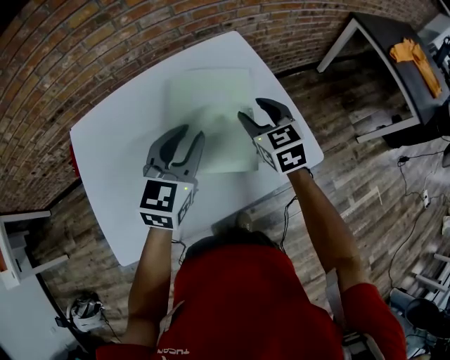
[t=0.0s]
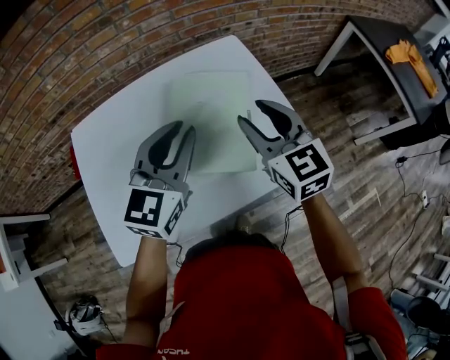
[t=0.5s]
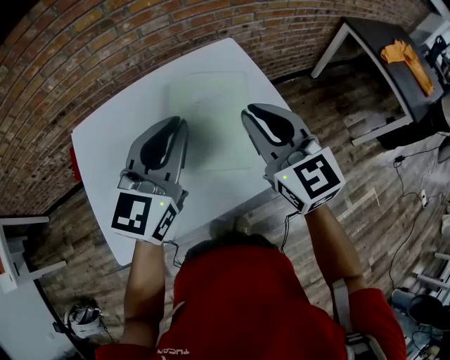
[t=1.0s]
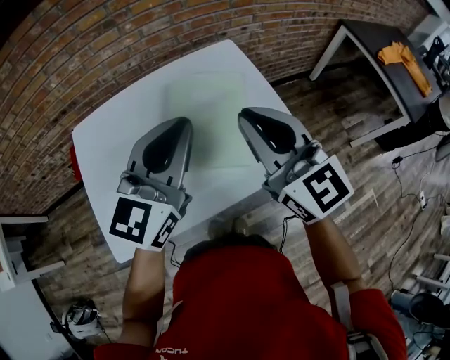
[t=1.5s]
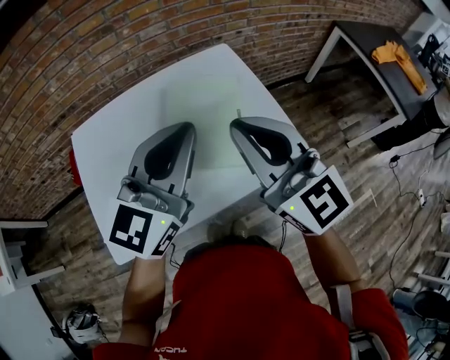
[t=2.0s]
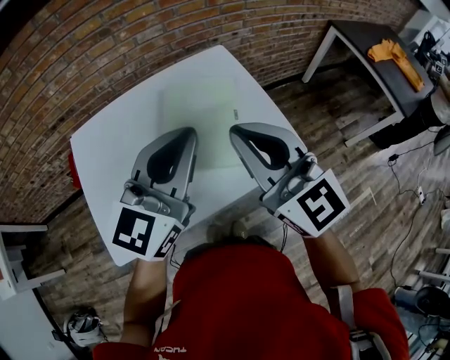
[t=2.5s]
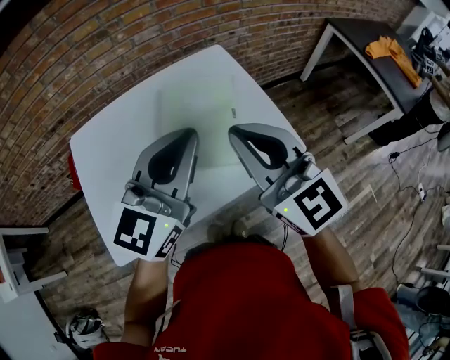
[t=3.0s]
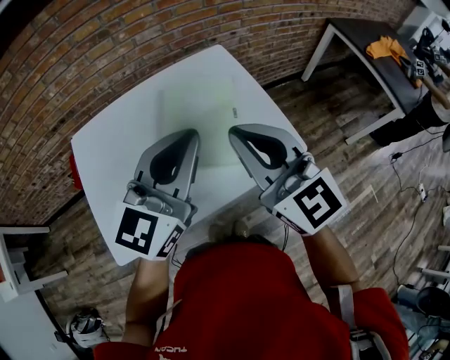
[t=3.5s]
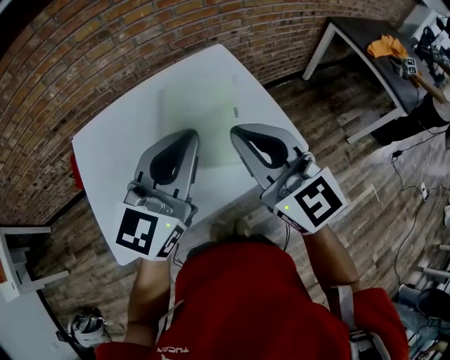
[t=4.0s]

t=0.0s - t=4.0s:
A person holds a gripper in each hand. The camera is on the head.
t=0.0s - t=2.0s: The left gripper moves upward and backward, approximately 15 cm, rotates about 20 degrees, and closes up, while the right gripper moves upward and backward, some 25 cm, tilts its fingers some 30 degrees upward, and closes its fingers.
t=2.0s - t=4.0s: The grippers stay close to where they were, moving slightly.

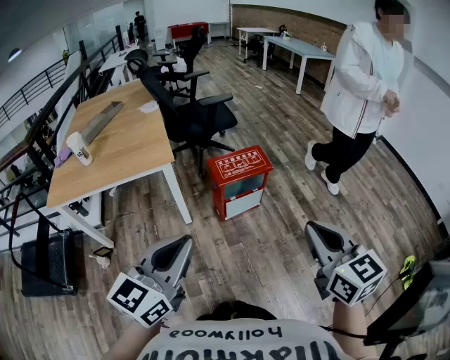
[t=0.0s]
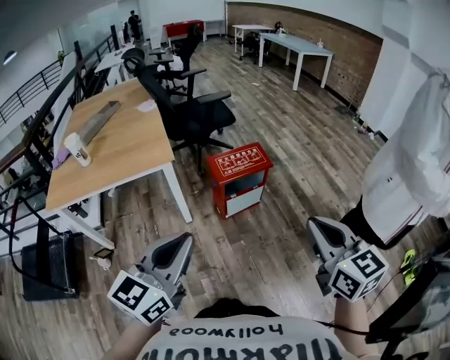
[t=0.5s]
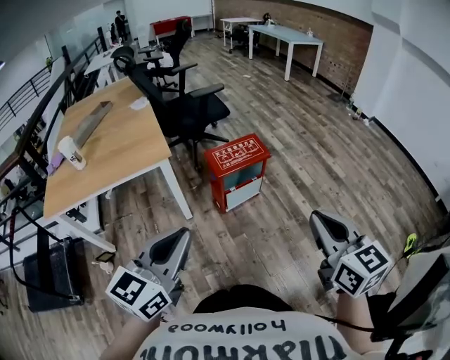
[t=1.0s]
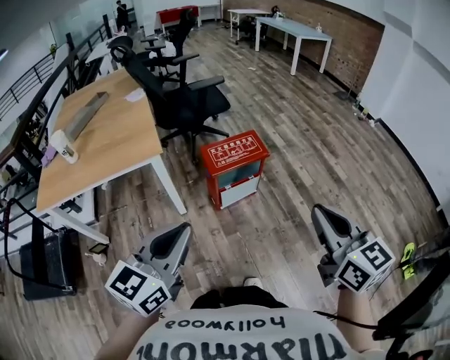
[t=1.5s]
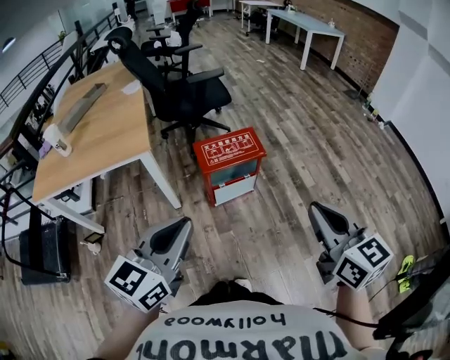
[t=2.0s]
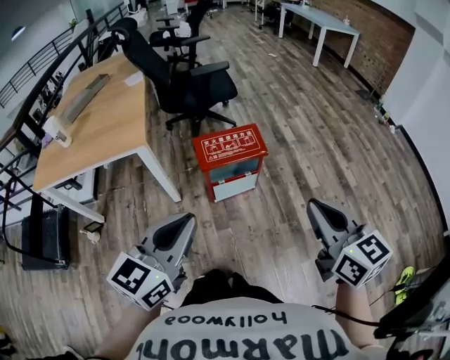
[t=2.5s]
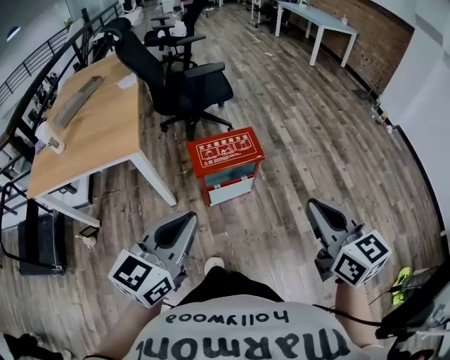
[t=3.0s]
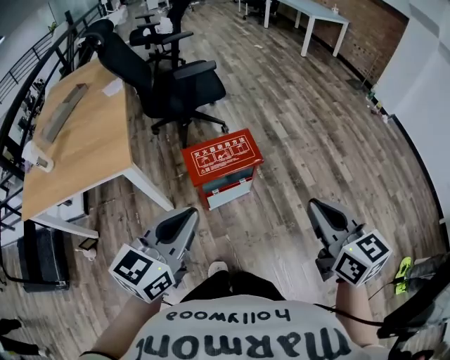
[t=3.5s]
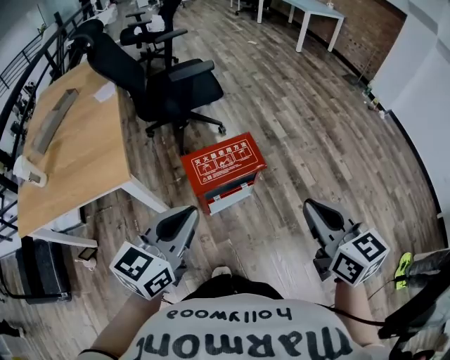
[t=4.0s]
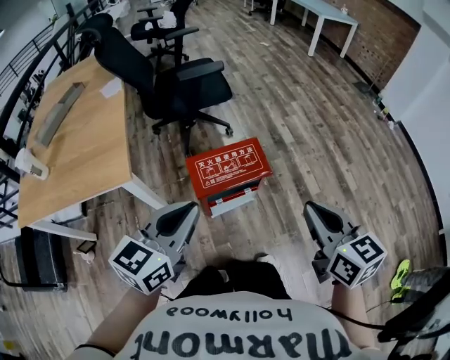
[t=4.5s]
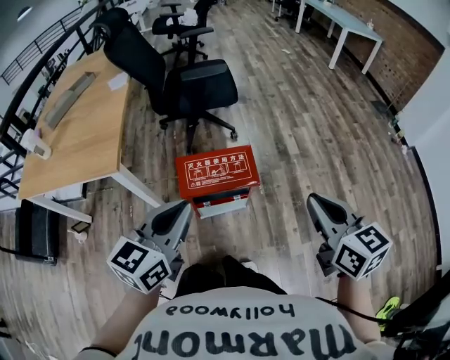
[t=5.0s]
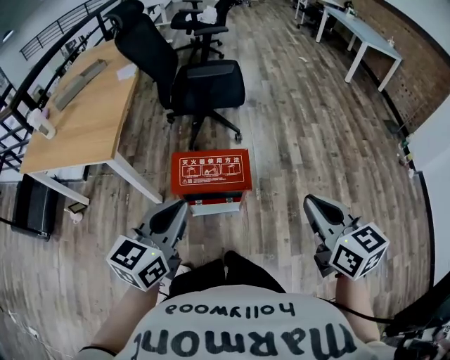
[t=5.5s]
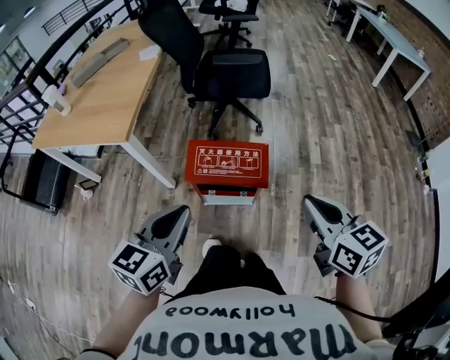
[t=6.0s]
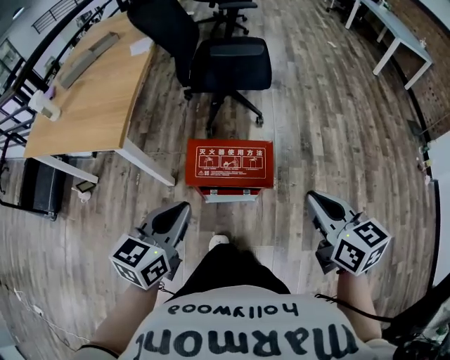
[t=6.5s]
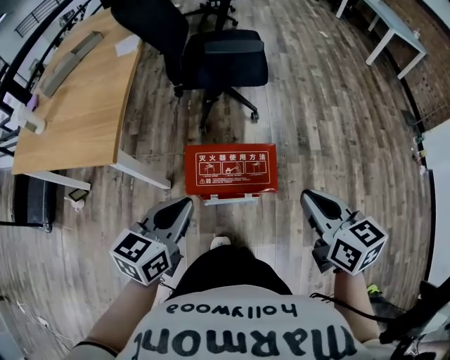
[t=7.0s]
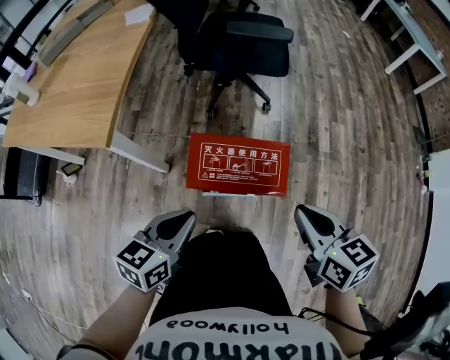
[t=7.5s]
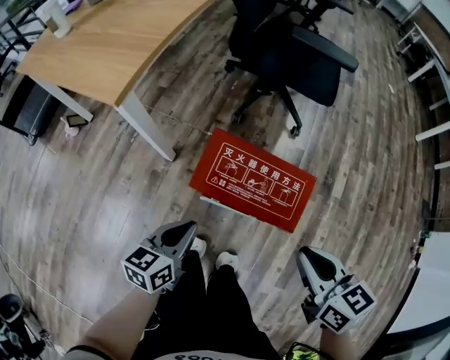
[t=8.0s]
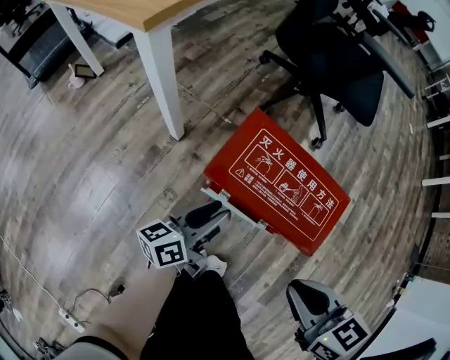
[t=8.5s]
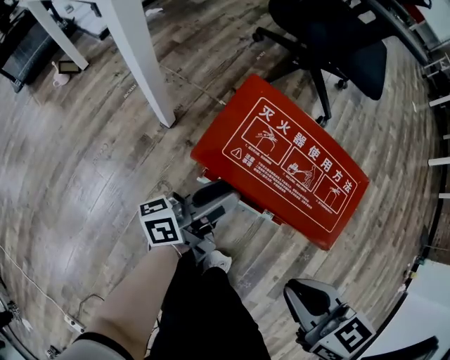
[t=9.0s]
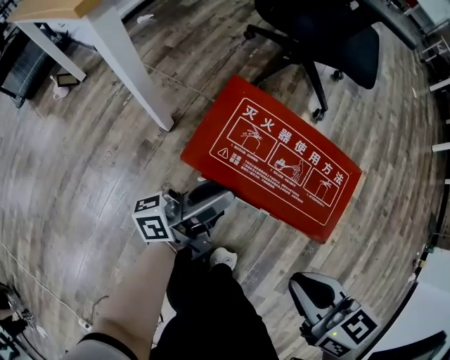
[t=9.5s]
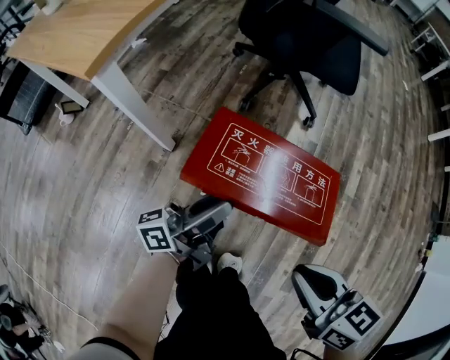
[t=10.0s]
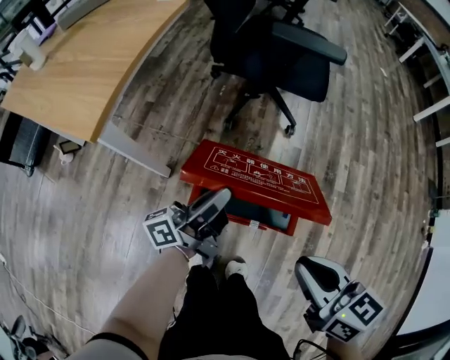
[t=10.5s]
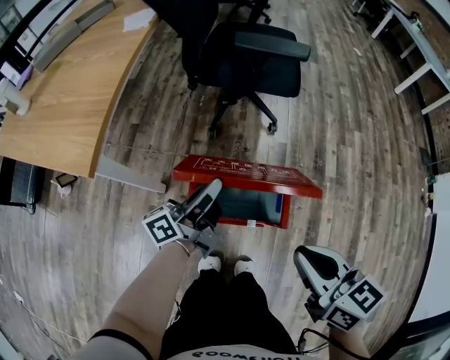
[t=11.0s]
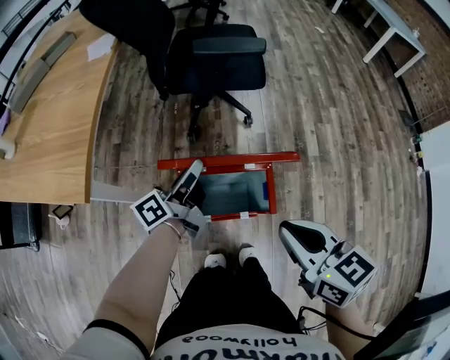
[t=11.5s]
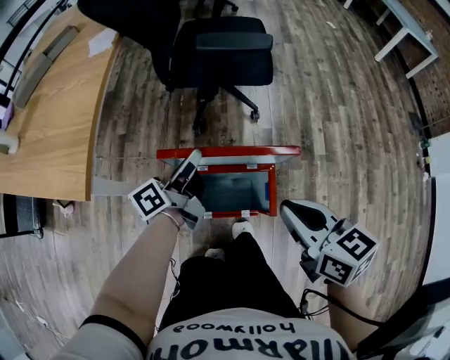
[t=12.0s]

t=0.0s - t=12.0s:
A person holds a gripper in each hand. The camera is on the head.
t=0.0s - t=2.0s: Both grippers move forward and to the right, roughly 15 cm.
t=2.0s - t=4.0s: The two grippers go approximately 20 cm forward.
t=4.0s - t=6.0s: The right gripper ends up about 20 cm from where it was, and changes its angle by some 30 degrees; the left gripper moves approximately 15 cm, and changes its angle by some 30 degrees.
t=6.0s - t=8.0s: The left gripper is displaced downward by some 30 cm, and rotates some 20 degrees. Meanwhile the right gripper is displaced downward, forward and to the left by some 25 cm, and turns by some 20 degrees.
t=8.0s - t=10.0s: The left gripper goes approximately 10 cm to the right and forward, goes downward and returns, roughly 15 cm each way, tilts its fingers approximately 50 degrees upward, and opens up, while the right gripper shifts about 10 cm downward.
t=10.0s - t=12.0s: The left gripper is displaced forward and upward by some 25 cm, and closes up. Meanwhile the right gripper heads upward and forward, covering about 20 cm, and changes its angle by roughly 20 degrees.

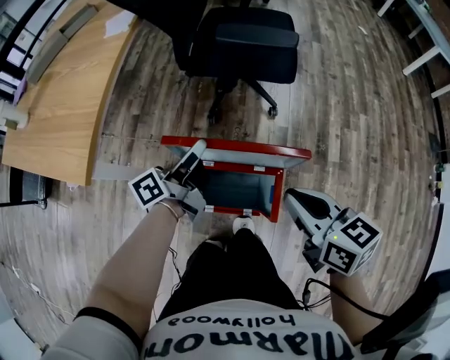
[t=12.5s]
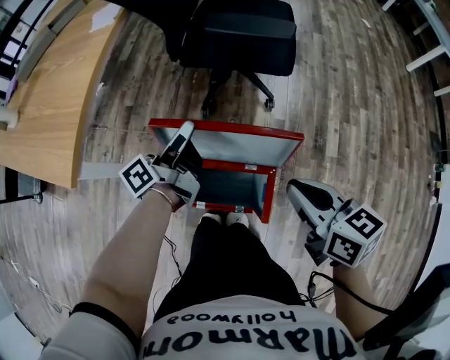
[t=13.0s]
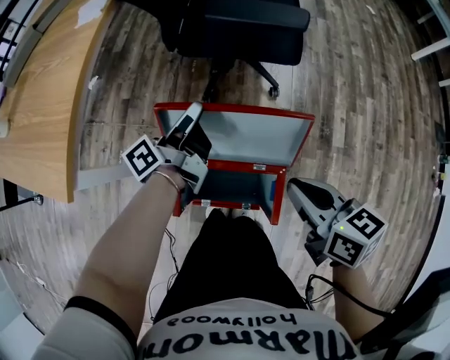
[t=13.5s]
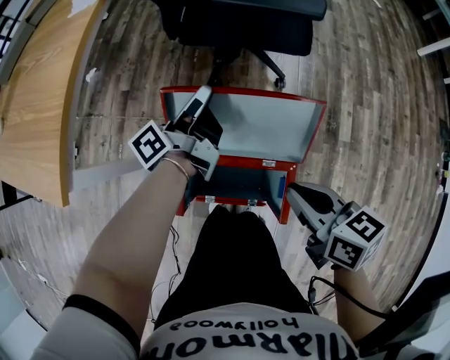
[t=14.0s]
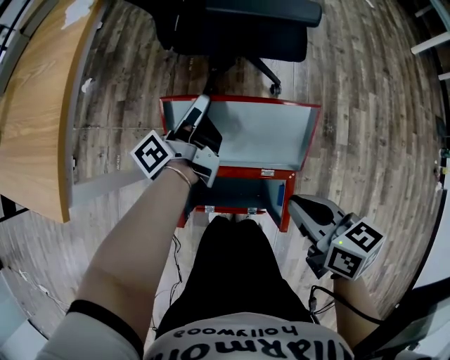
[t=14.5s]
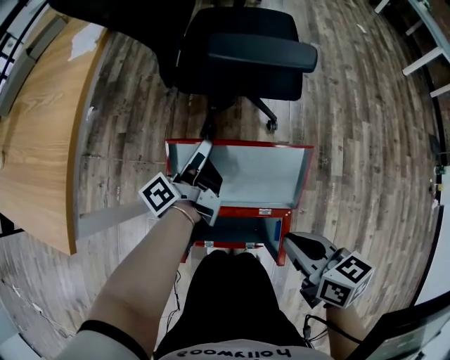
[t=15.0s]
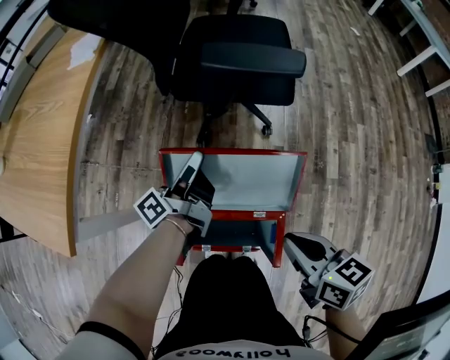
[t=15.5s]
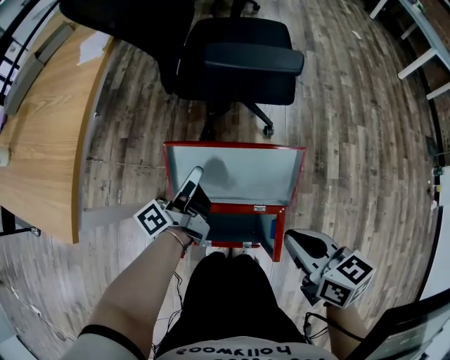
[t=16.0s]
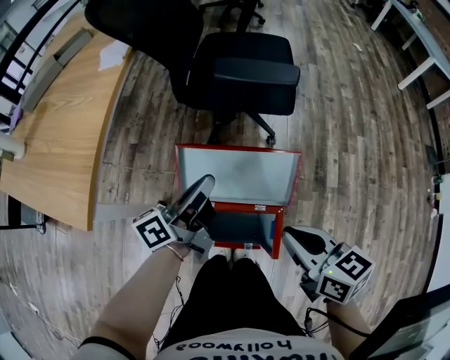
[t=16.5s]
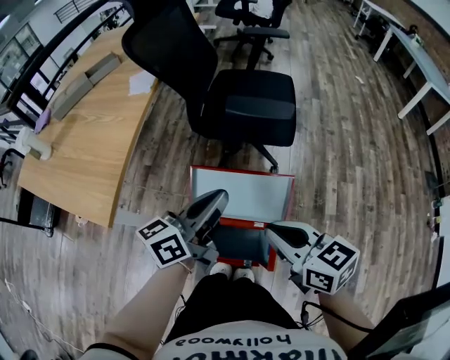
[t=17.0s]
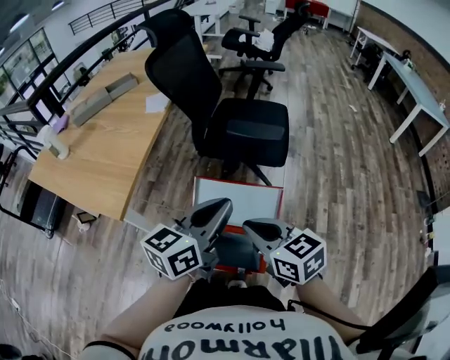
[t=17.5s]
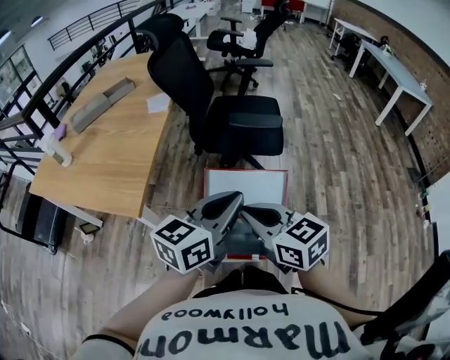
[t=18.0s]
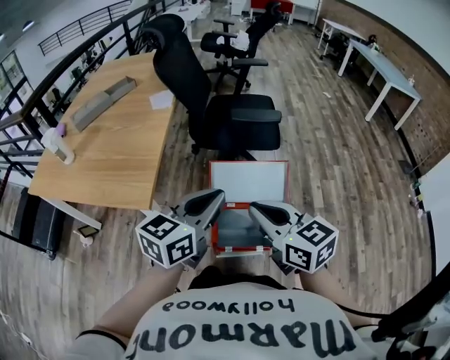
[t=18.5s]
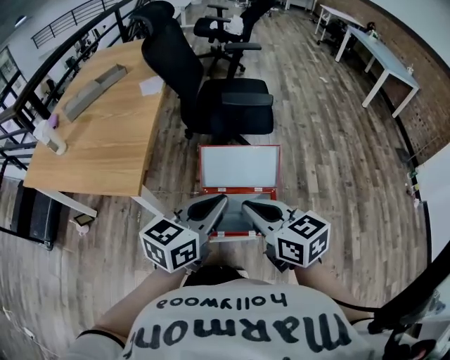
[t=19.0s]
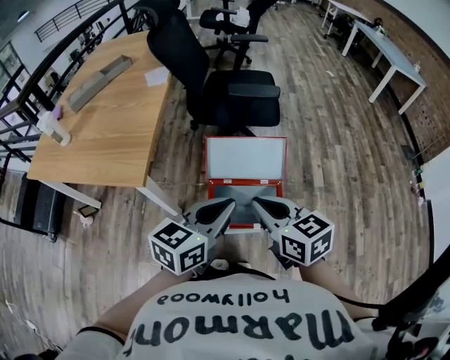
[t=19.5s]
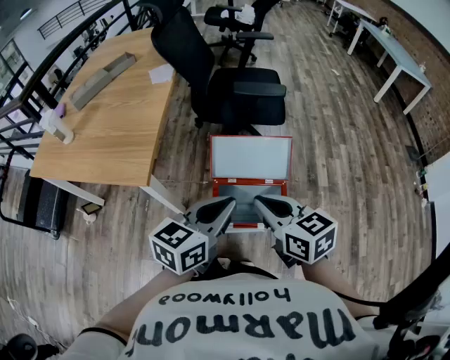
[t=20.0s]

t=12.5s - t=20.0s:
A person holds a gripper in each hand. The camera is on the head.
t=12.5s - t=14.5s: The right gripper travels downward by some 10 cm. The left gripper travels forward and downward by about 15 cm.
t=14.5s - t=16.5s: The right gripper travels upward by about 10 cm; the left gripper is displaced upward and backward by approximately 15 cm, and swivels approximately 30 degrees.
t=16.5s - t=18.0s: The right gripper travels upward and to the left by some 20 cm, and turns by roughly 20 degrees. The left gripper moves upward and backward, some 25 cm, and rotates around the line of its fingers by approximately 40 degrees, clockwise from behind.
t=18.0s - t=20.0s: The left gripper heads backward and downward, covering some 10 cm. The right gripper goes about 5 cm backward.

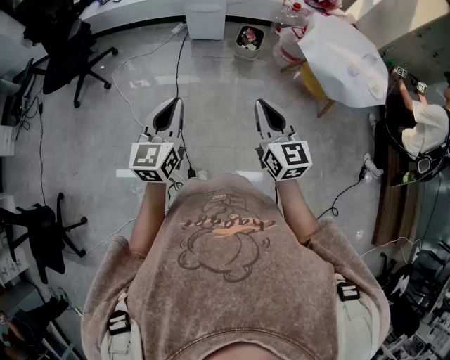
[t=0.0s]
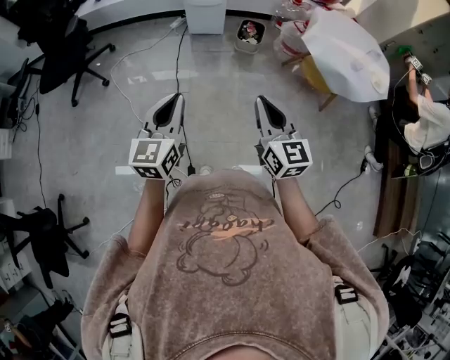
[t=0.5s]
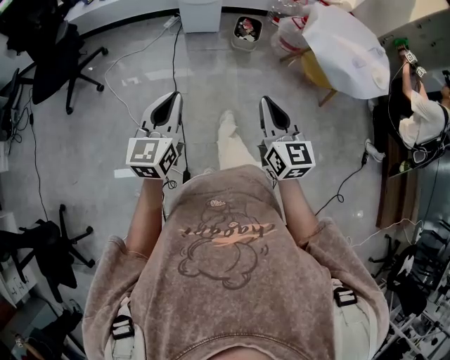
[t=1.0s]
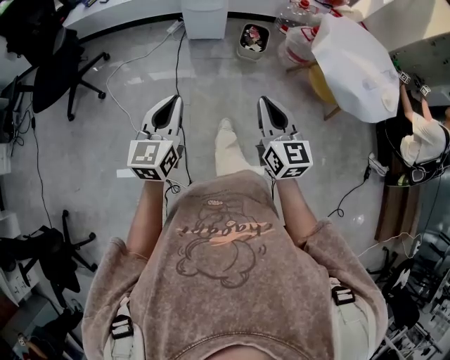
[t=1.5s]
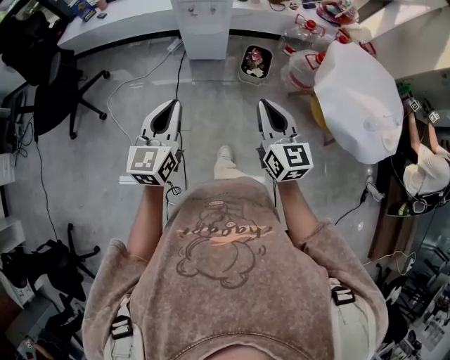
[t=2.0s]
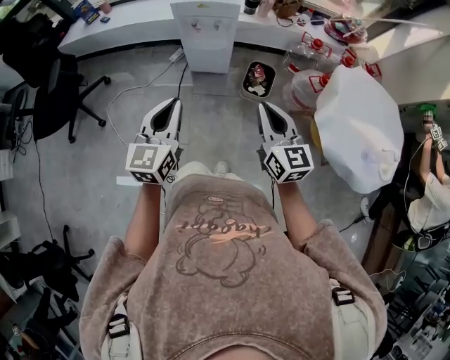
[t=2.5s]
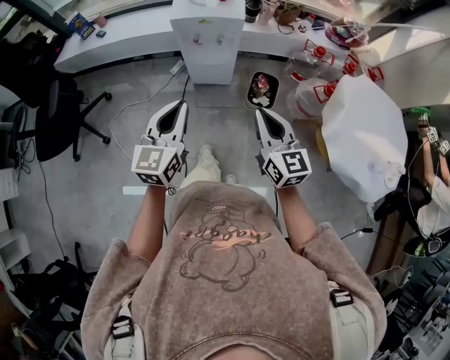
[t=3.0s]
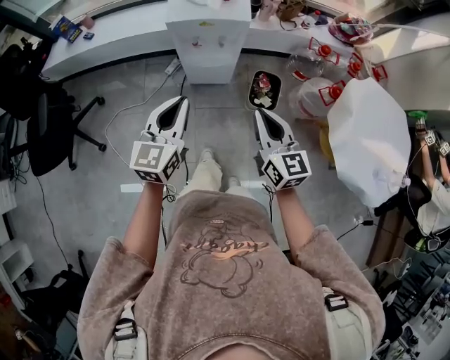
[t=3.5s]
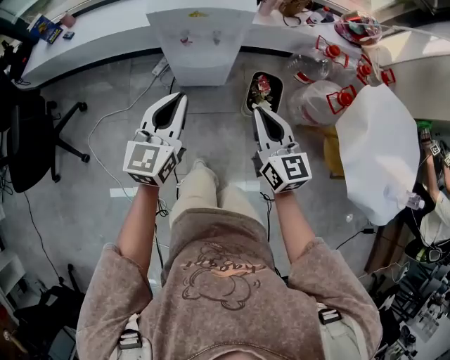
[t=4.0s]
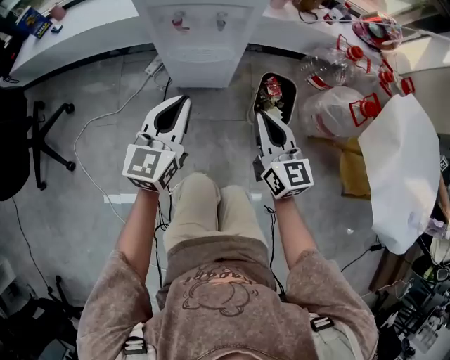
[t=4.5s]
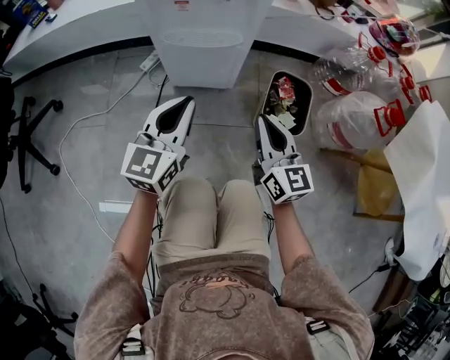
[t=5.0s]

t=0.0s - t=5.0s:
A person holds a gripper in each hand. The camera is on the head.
t=0.0s - t=2.5s: The pair of grippers is taken forward, about 40 cm.
t=2.5s - t=5.0s: Both grippers travel together downward and forward, some 50 cm.
